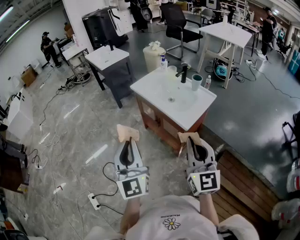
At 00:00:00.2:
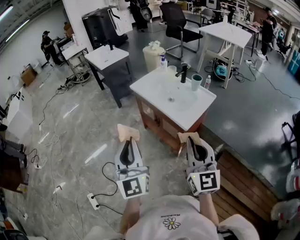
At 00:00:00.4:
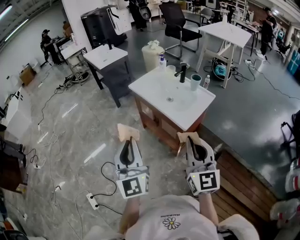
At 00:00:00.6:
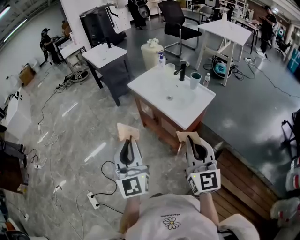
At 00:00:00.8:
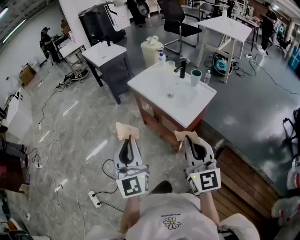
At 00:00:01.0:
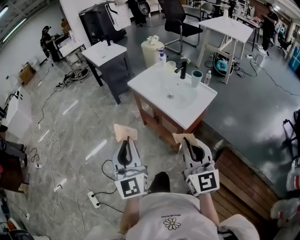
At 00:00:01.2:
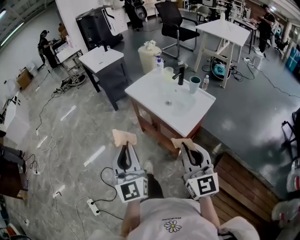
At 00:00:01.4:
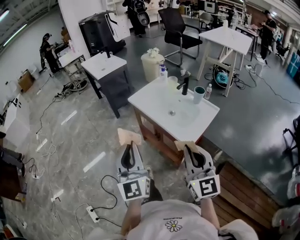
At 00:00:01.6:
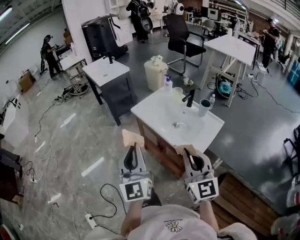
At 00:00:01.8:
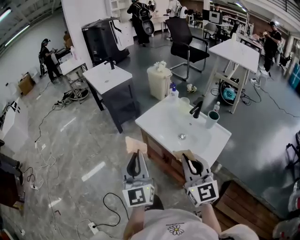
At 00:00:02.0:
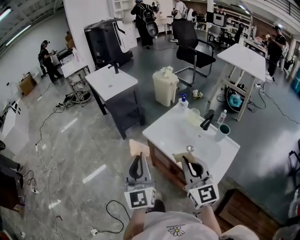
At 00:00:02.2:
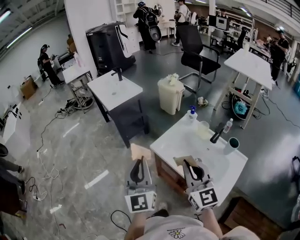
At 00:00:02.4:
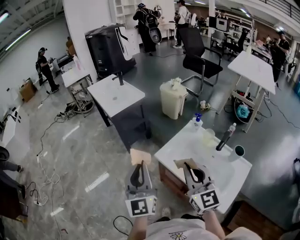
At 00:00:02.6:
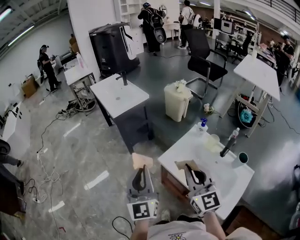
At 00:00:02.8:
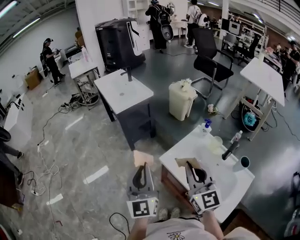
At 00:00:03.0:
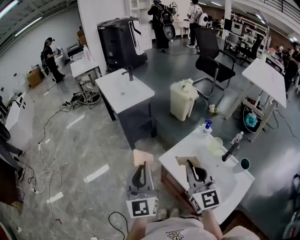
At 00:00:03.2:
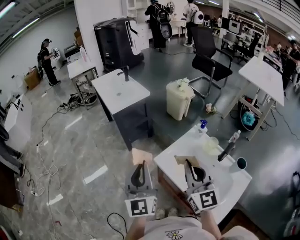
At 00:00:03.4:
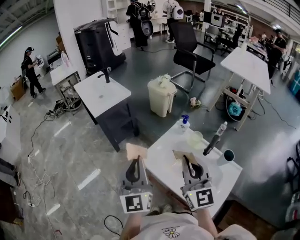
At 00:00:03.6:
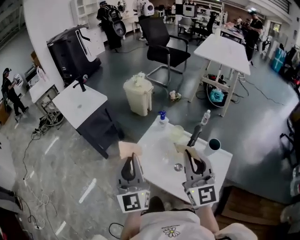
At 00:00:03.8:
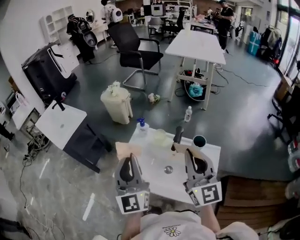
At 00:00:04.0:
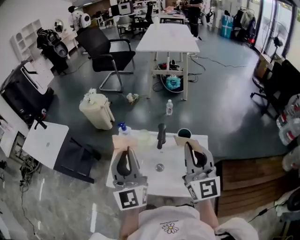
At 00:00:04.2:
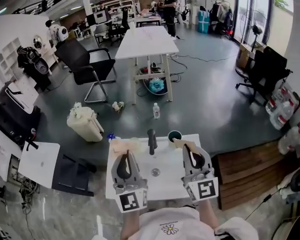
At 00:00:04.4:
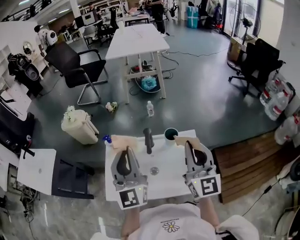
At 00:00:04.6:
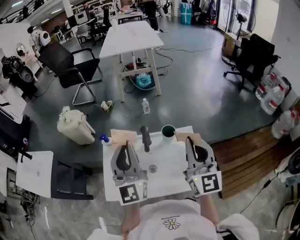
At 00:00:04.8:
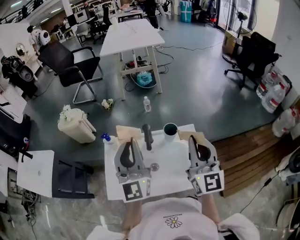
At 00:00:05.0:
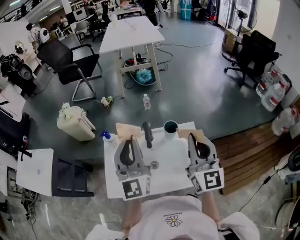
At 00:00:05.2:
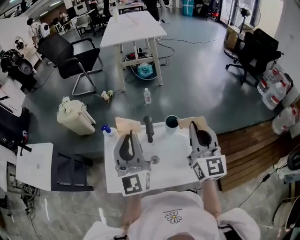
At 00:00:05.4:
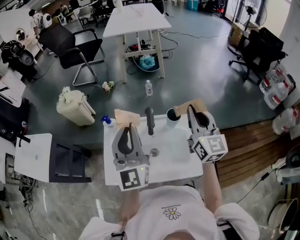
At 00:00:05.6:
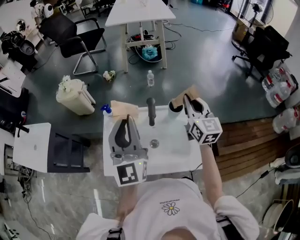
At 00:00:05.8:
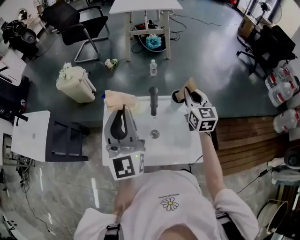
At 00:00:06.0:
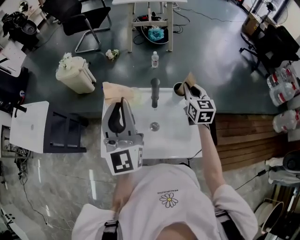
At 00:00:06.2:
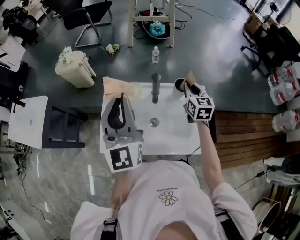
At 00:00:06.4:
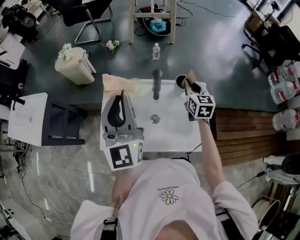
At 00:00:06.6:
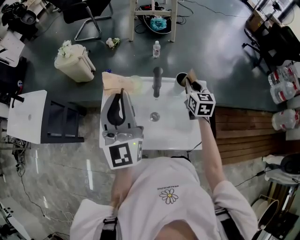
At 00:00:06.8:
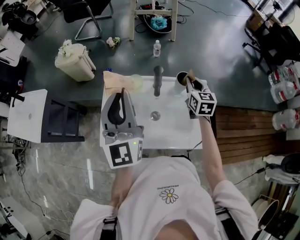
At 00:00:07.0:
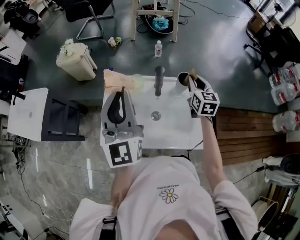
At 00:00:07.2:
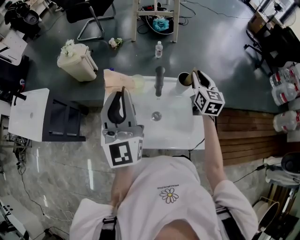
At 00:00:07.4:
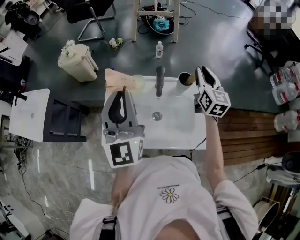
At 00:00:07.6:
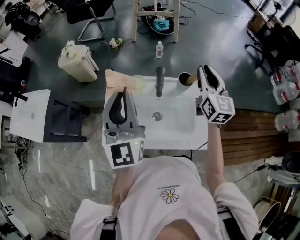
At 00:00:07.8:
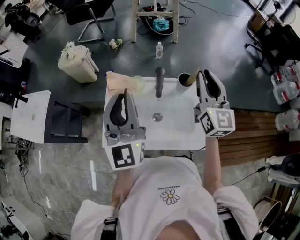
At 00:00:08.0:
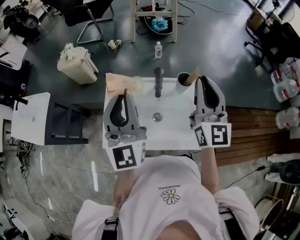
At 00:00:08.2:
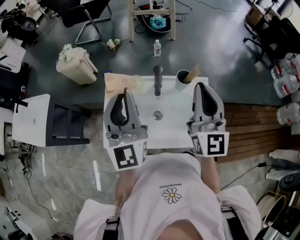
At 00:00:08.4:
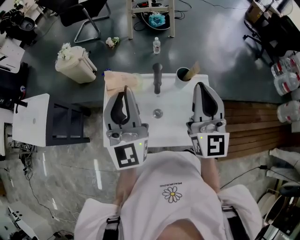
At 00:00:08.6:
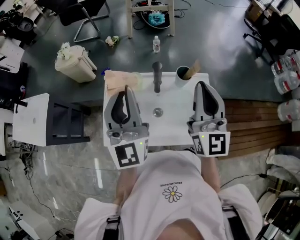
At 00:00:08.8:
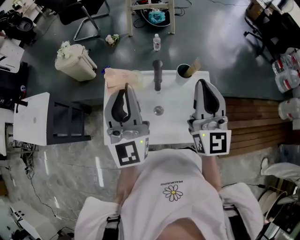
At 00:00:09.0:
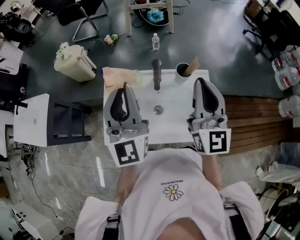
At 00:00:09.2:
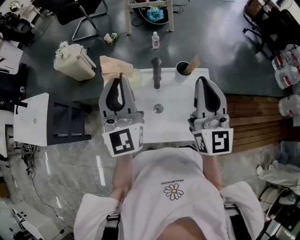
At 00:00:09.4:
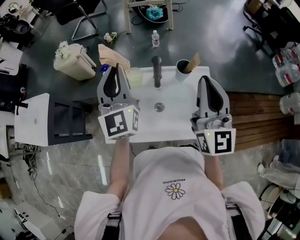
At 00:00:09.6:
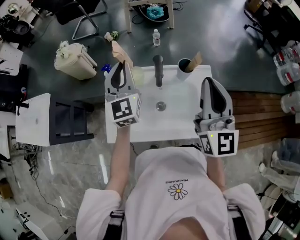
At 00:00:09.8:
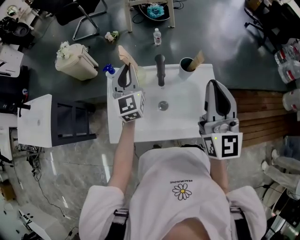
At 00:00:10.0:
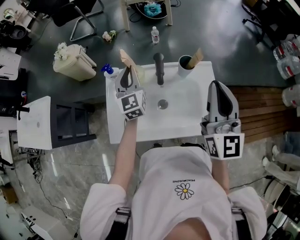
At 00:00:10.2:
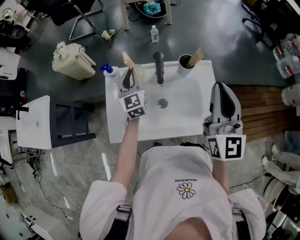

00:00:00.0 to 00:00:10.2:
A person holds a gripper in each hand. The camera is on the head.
00:00:00.0 to 00:00:01.4: Both grippers travel together forward, some 10 cm.
00:00:01.4 to 00:00:03.0: Both grippers are carried forward, about 50 cm.
00:00:03.0 to 00:00:04.4: The right gripper shifts by about 35 cm, and swivels about 60 degrees, while the left gripper shifts by roughly 35 cm, and changes its angle by some 50 degrees.
00:00:04.4 to 00:00:05.8: The right gripper moves forward and downward, about 20 cm, and rotates about 20 degrees.
00:00:07.2 to 00:00:08.8: The right gripper moves backward, upward and to the left, some 20 cm, and rotates approximately 30 degrees.
00:00:08.8 to 00:00:10.2: The left gripper shifts about 25 cm downward and forward, and swivels roughly 20 degrees.

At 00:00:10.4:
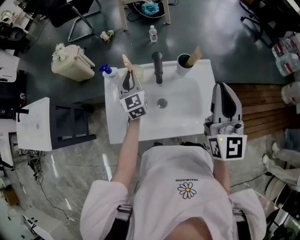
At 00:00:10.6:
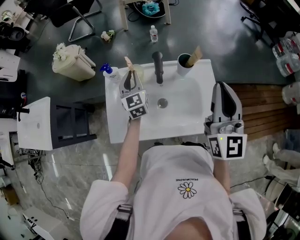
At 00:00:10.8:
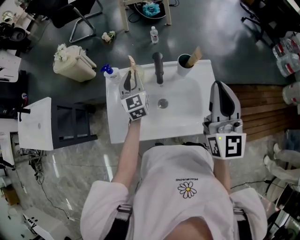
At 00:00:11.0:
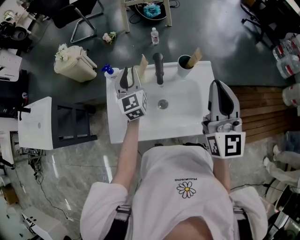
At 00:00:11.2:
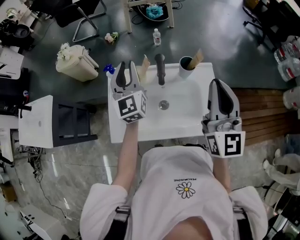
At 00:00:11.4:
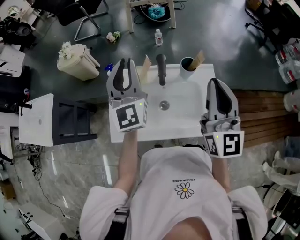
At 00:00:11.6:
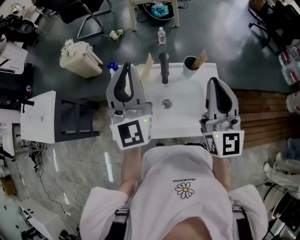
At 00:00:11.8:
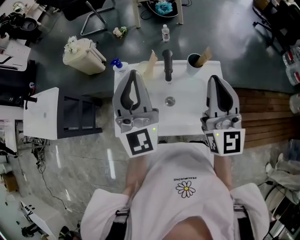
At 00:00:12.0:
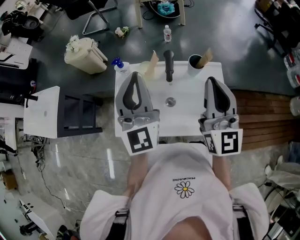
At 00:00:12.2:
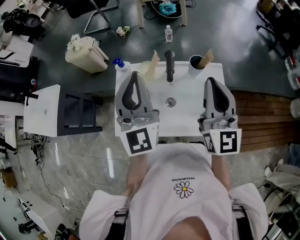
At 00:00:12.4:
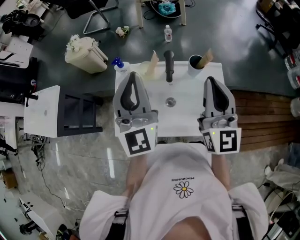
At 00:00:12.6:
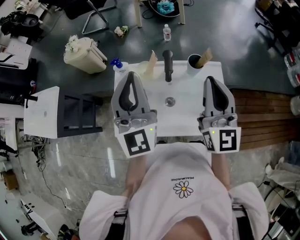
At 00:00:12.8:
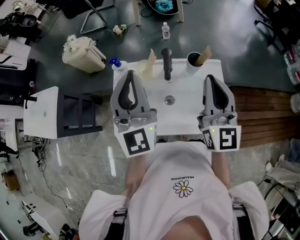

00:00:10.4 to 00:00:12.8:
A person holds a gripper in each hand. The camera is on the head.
00:00:10.4 to 00:00:11.6: The left gripper shifts some 25 cm upward and backward, and rotates approximately 30 degrees.
00:00:11.6 to 00:00:12.8: There are only small adjustments of the grippers.

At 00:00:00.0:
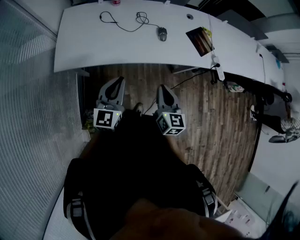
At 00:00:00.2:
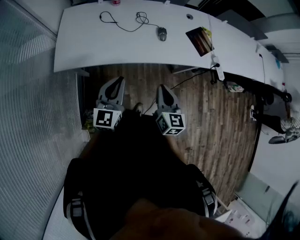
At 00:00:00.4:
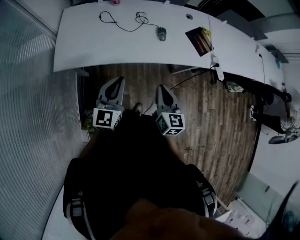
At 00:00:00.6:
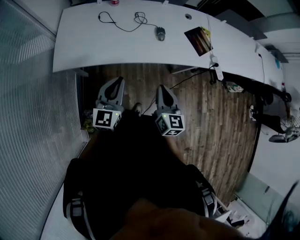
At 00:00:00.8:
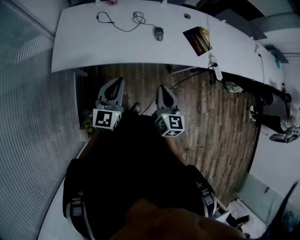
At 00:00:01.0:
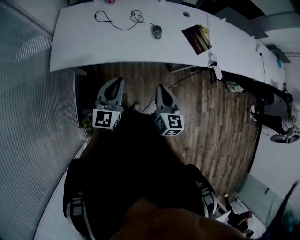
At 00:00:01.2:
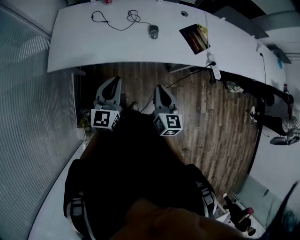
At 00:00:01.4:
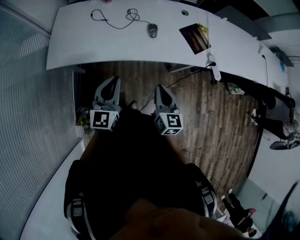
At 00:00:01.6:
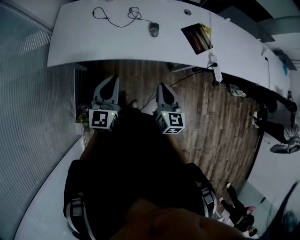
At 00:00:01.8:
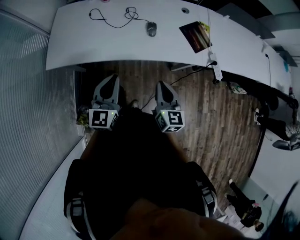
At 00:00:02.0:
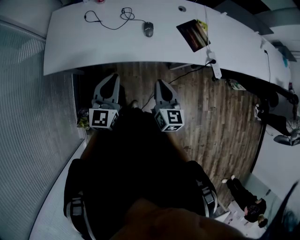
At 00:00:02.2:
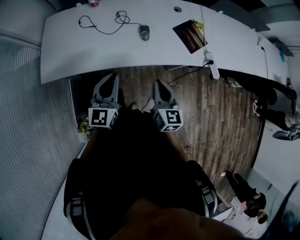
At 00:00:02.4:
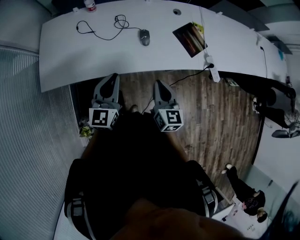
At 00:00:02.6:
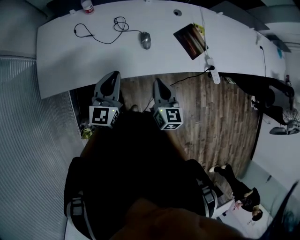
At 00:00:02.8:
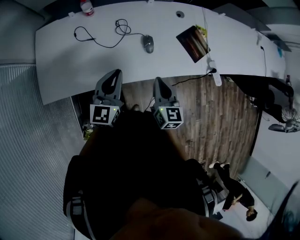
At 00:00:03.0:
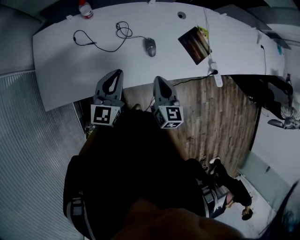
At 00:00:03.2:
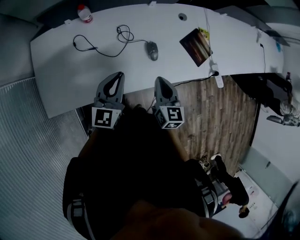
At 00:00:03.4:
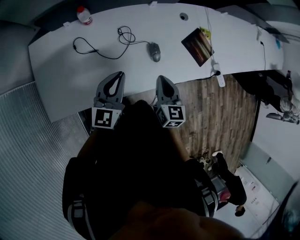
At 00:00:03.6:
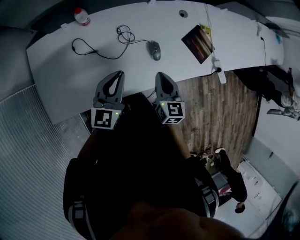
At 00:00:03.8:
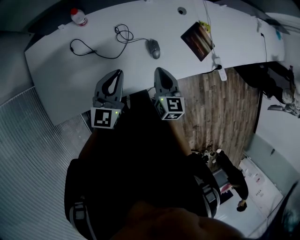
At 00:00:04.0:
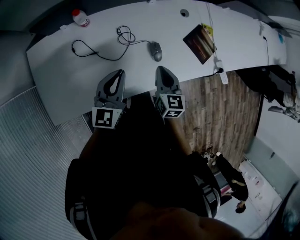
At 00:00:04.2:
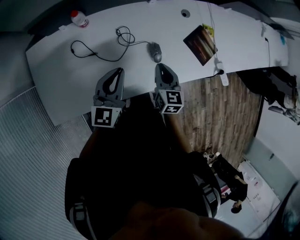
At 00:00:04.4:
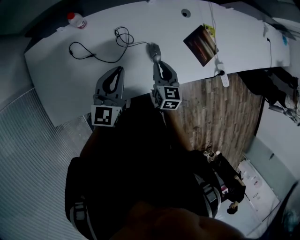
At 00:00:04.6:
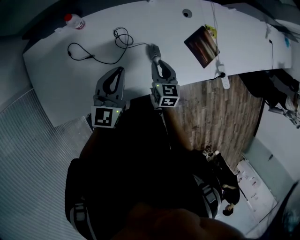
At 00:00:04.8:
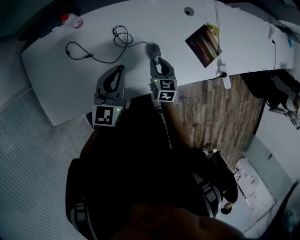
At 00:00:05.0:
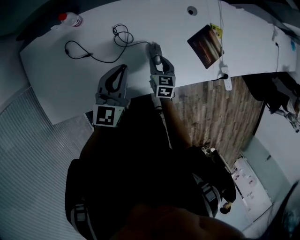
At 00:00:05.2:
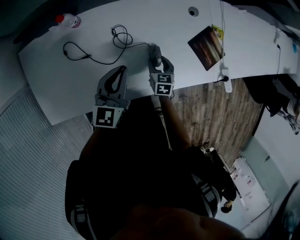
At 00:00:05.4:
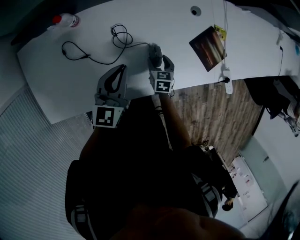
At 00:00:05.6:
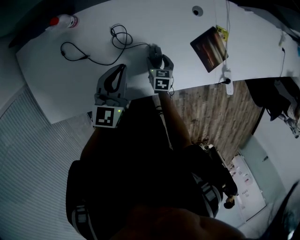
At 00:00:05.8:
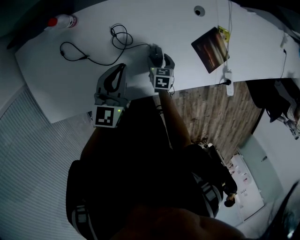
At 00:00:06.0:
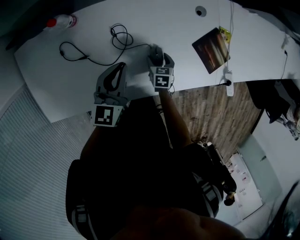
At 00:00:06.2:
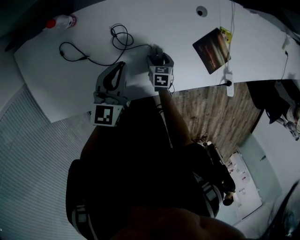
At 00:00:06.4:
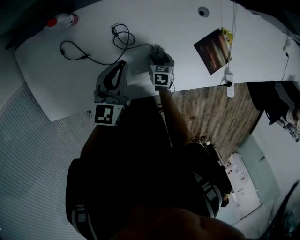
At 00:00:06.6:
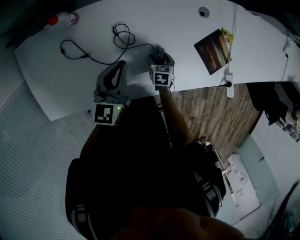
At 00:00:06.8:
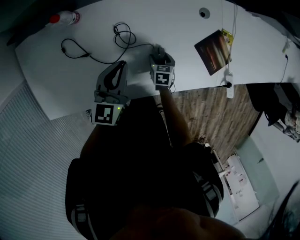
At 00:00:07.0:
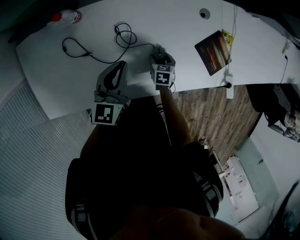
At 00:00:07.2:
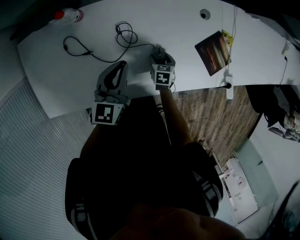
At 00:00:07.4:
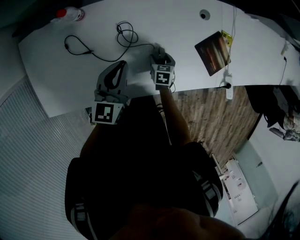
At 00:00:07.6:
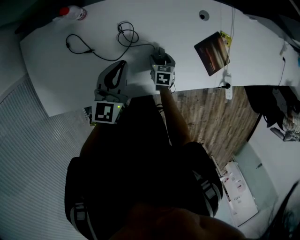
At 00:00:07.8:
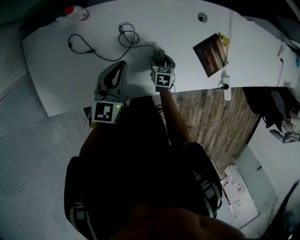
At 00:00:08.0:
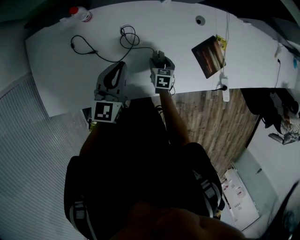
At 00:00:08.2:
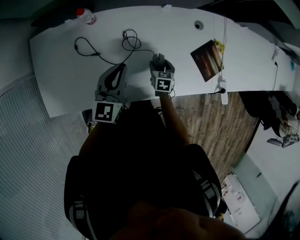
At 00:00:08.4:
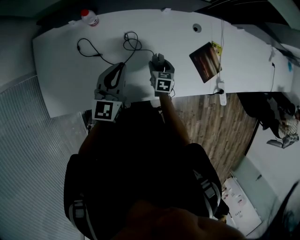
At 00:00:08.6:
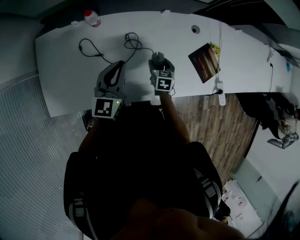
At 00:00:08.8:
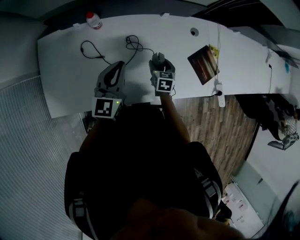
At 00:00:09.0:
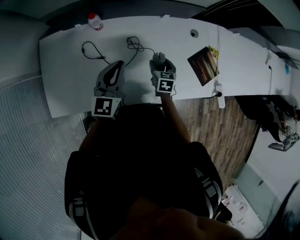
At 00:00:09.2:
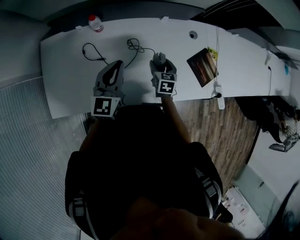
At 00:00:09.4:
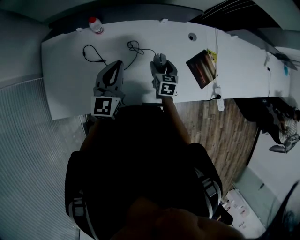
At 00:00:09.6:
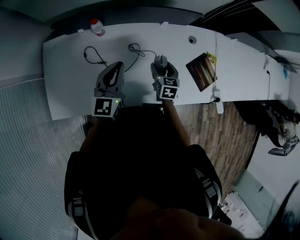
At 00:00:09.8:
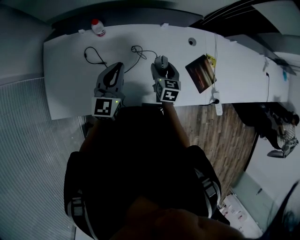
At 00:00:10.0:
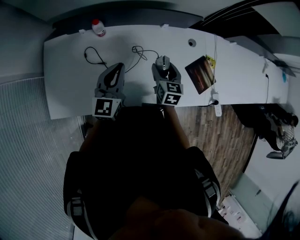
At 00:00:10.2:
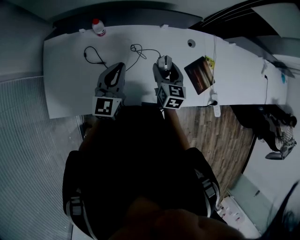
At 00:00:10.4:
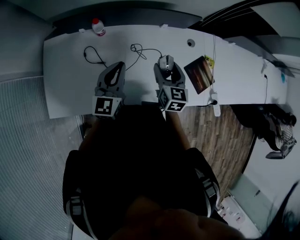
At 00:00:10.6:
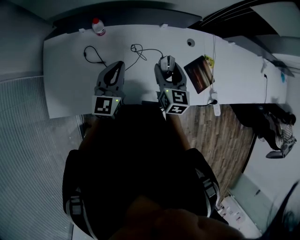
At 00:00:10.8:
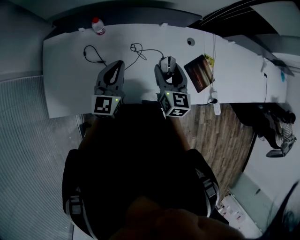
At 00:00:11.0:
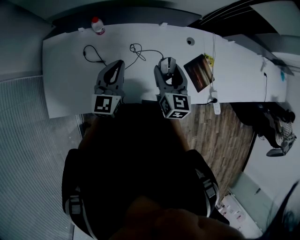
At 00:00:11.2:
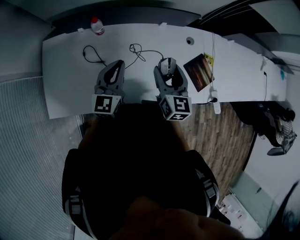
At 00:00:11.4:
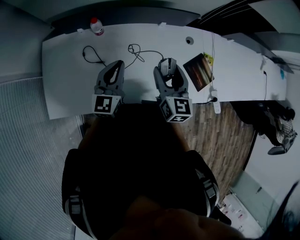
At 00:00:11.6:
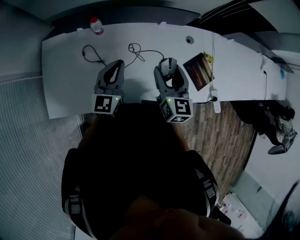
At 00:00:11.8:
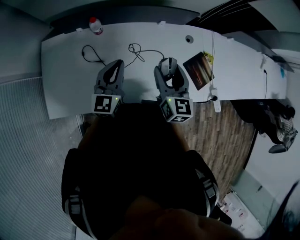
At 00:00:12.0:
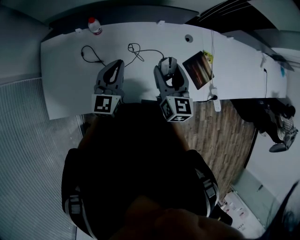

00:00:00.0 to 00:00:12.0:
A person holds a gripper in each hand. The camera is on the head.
00:00:00.0 to 00:00:01.6: Both grippers travel together to the right, roughly 10 cm.
00:00:01.6 to 00:00:03.0: The grippers both shift forward by about 25 cm.
00:00:03.0 to 00:00:04.4: The right gripper is displaced forward and downward by some 15 cm. The left gripper shifts about 10 cm forward.
00:00:04.4 to 00:00:06.0: The right gripper goes approximately 20 cm downward, changes its angle by roughly 30 degrees, and opens up. The left gripper heads forward and downward, covering some 10 cm.
00:00:06.0 to 00:00:07.6: The grippers stay close to where they were, moving slightly.
00:00:07.6 to 00:00:09.0: The right gripper travels upward by roughly 15 cm; the left gripper travels upward by approximately 10 cm.
00:00:09.0 to 00:00:10.4: The right gripper travels upward by approximately 15 cm, and rotates about 20 degrees.
00:00:10.4 to 00:00:12.0: The right gripper travels upward by approximately 5 cm.
